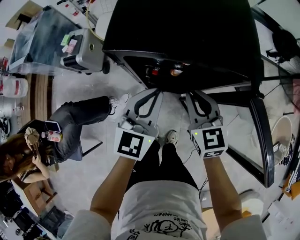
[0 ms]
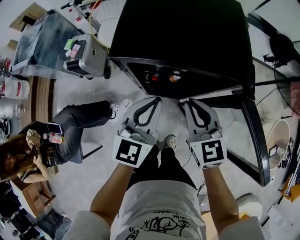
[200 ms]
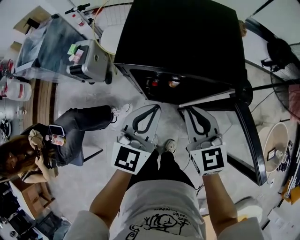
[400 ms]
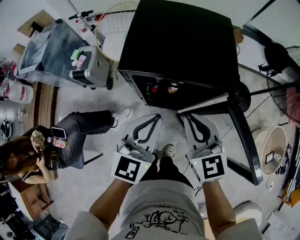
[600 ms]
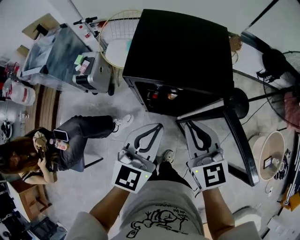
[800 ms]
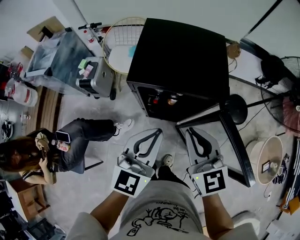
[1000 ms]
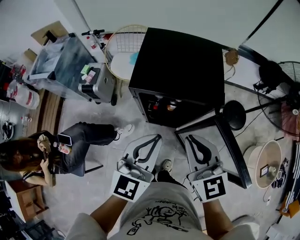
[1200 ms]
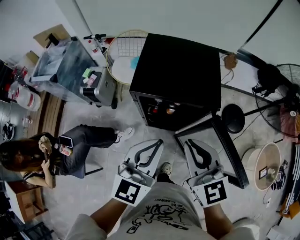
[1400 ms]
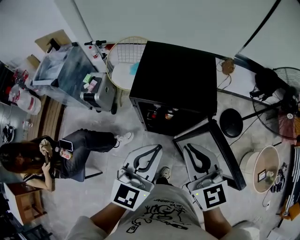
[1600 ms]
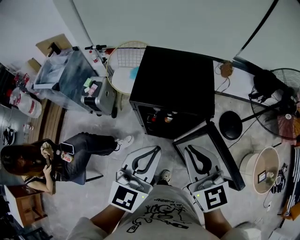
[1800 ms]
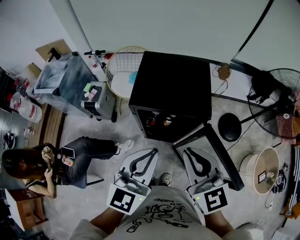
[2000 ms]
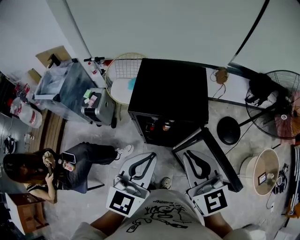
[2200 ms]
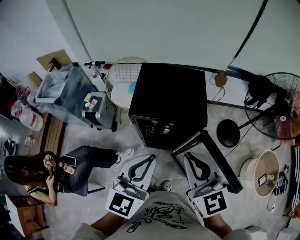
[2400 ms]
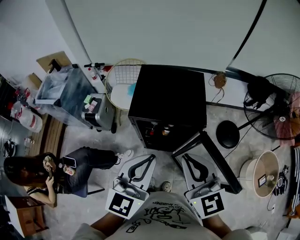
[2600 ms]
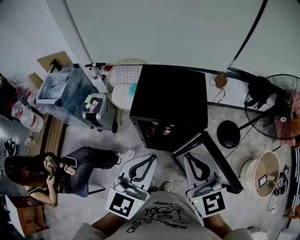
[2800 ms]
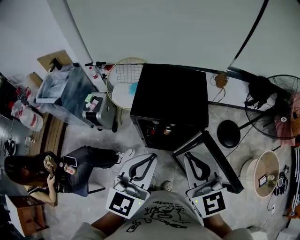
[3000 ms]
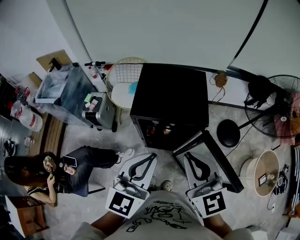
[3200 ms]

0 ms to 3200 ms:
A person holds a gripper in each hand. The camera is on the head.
0 ms to 1600 ms: Both grippers move upward and backward, roughly 25 cm.
1600 ms to 3200 ms: Both grippers move upward, about 5 cm.

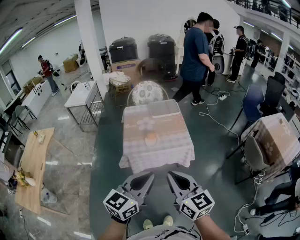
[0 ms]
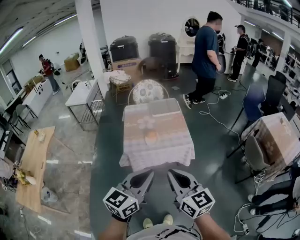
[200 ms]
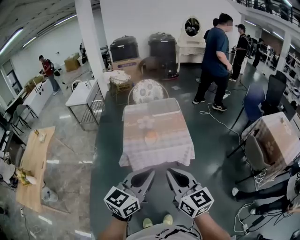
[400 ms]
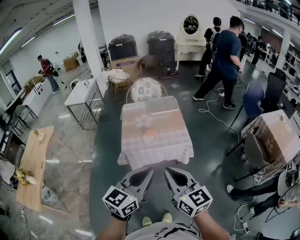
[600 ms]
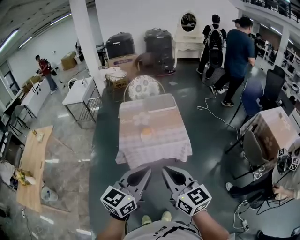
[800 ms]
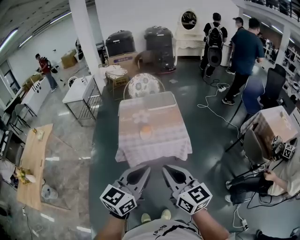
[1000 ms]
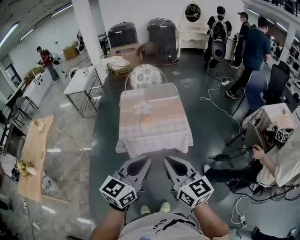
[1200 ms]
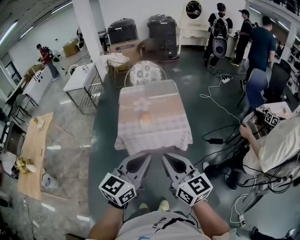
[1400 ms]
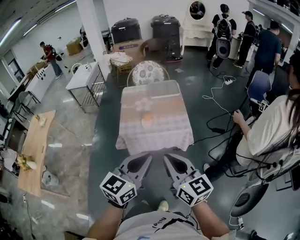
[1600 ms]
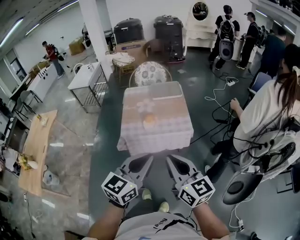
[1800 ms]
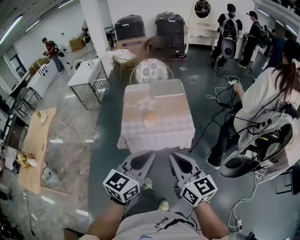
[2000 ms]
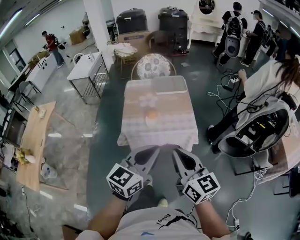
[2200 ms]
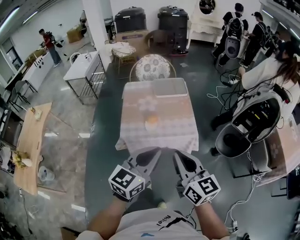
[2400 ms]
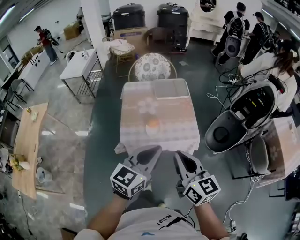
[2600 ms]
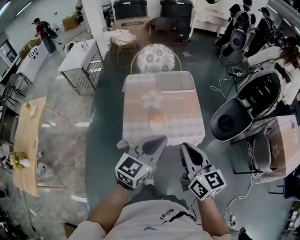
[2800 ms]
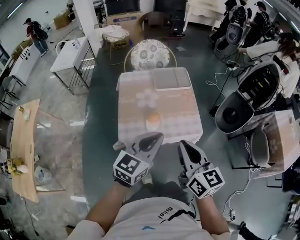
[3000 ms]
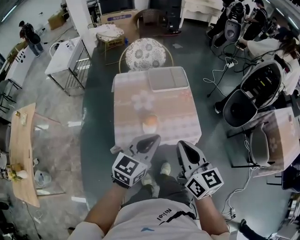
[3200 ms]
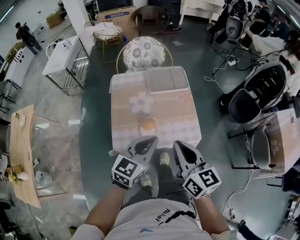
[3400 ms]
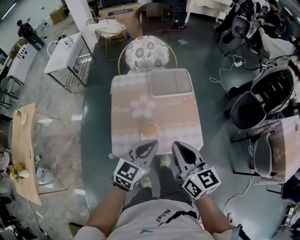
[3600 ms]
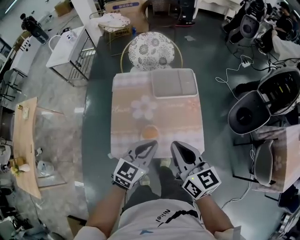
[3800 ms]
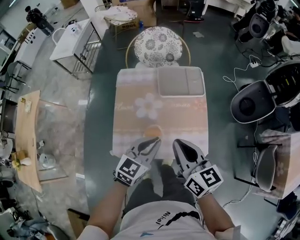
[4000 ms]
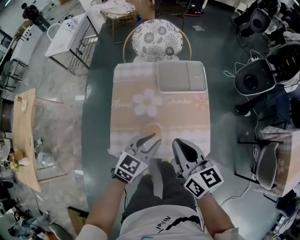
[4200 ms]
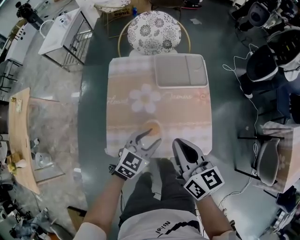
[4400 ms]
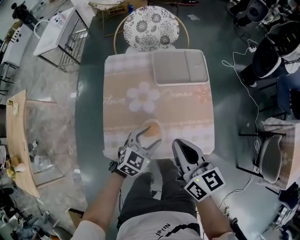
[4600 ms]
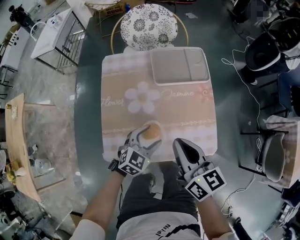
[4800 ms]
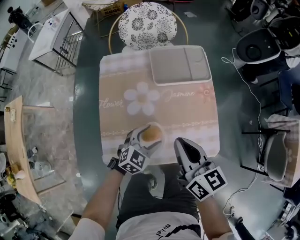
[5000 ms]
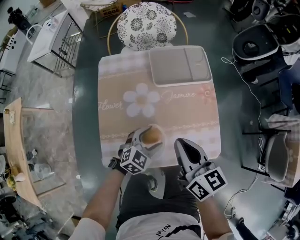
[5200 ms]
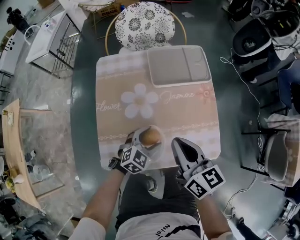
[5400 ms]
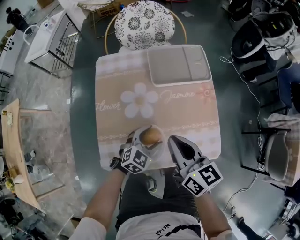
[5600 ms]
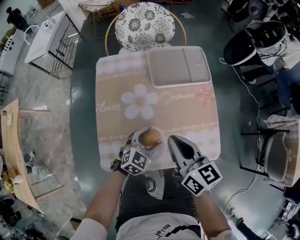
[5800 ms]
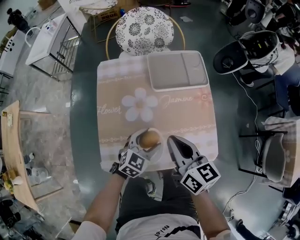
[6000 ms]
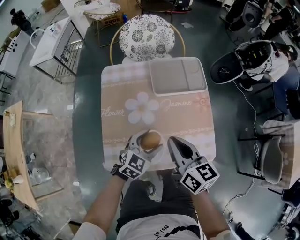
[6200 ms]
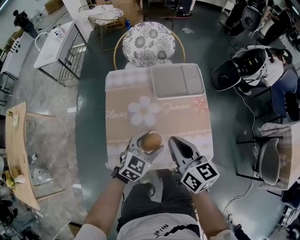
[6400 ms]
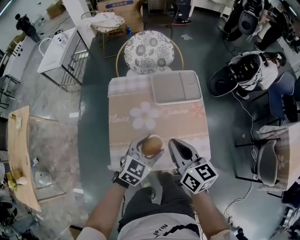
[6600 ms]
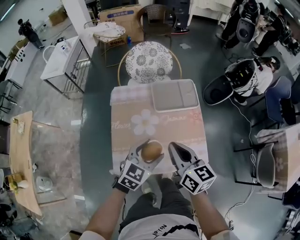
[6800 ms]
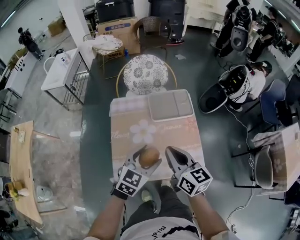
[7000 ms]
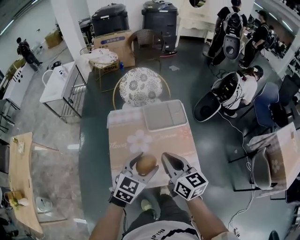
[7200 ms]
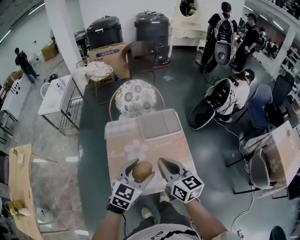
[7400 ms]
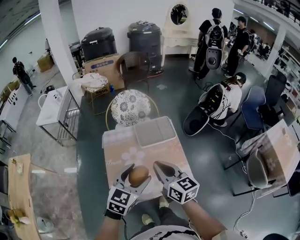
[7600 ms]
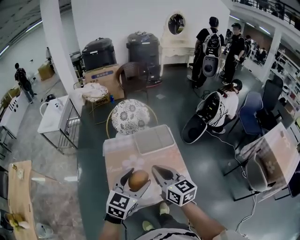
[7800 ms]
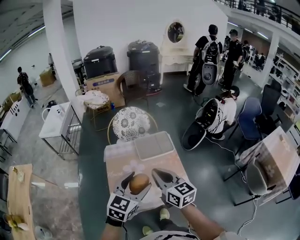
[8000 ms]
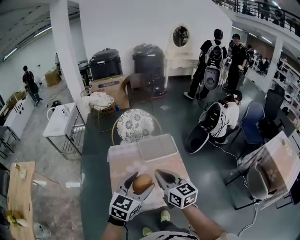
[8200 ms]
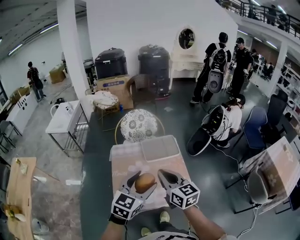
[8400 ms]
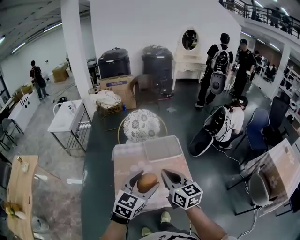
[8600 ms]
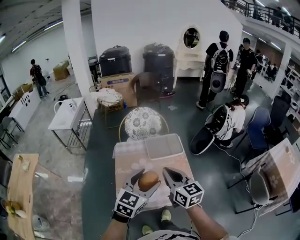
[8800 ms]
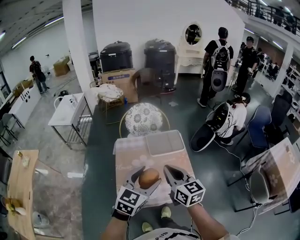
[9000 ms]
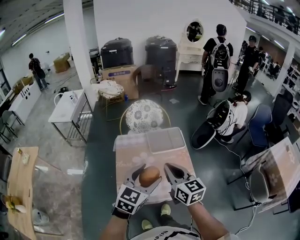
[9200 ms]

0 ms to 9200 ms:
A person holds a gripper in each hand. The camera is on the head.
0 ms to 1600 ms: The left gripper goes about 5 cm to the right.
1600 ms to 3000 ms: The two grippers go roughly 25 cm forward.
3000 ms to 4600 ms: The left gripper shifts about 35 cm downward and forward, turns by roughly 30 degrees, and opens its fingers. The right gripper is displaced forward and downward by approximately 25 cm.
4600 ms to 6200 ms: The left gripper moves some 10 cm downward and comes back. Meanwhile the right gripper moves downward, some 5 cm.
6200 ms to 7600 ms: The left gripper travels upward by some 30 cm; the right gripper goes some 20 cm upward.
7600 ms to 9200 ms: The left gripper shifts by approximately 5 cm.

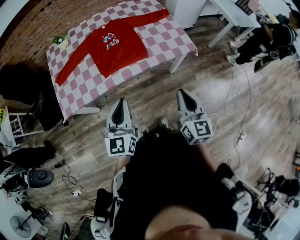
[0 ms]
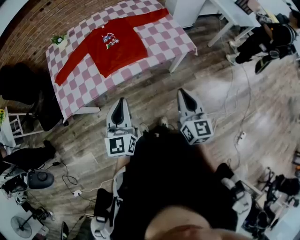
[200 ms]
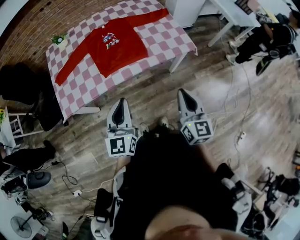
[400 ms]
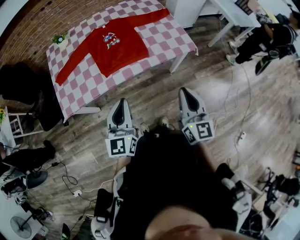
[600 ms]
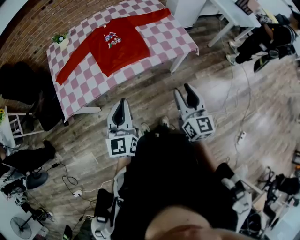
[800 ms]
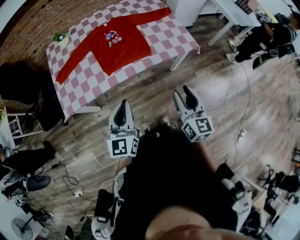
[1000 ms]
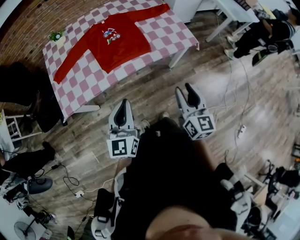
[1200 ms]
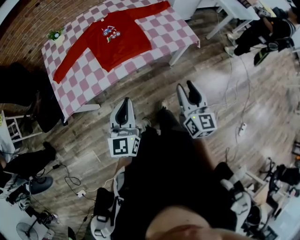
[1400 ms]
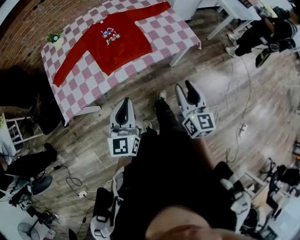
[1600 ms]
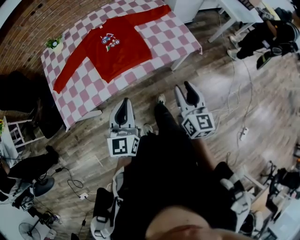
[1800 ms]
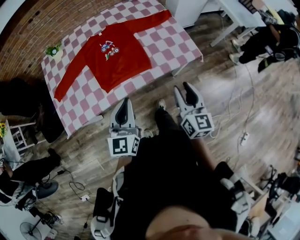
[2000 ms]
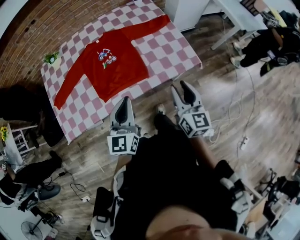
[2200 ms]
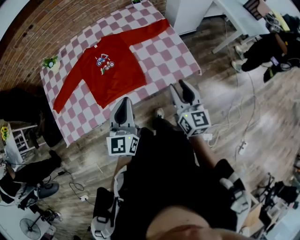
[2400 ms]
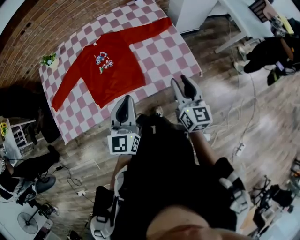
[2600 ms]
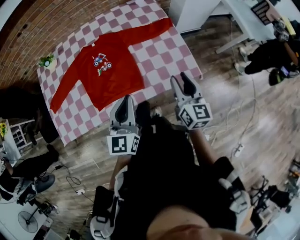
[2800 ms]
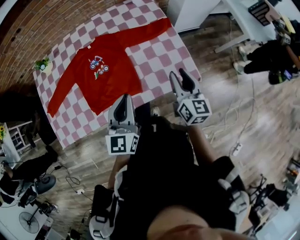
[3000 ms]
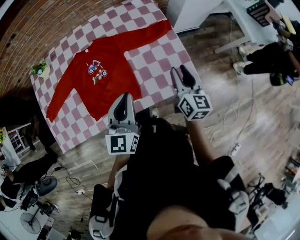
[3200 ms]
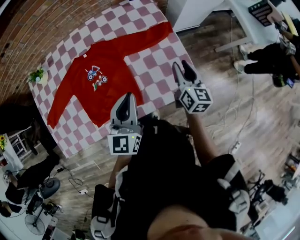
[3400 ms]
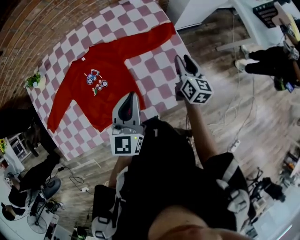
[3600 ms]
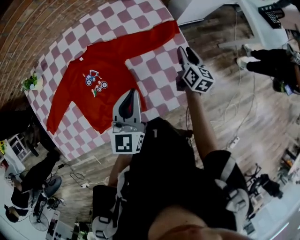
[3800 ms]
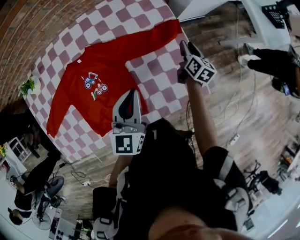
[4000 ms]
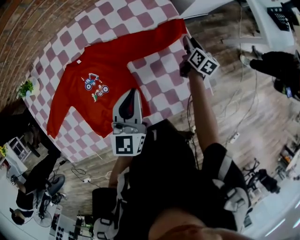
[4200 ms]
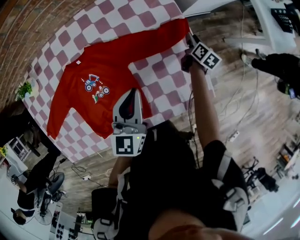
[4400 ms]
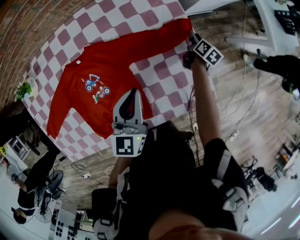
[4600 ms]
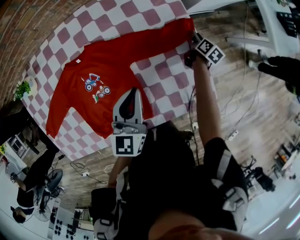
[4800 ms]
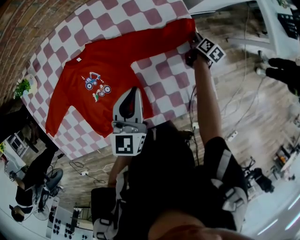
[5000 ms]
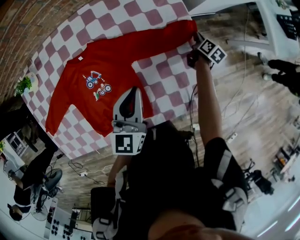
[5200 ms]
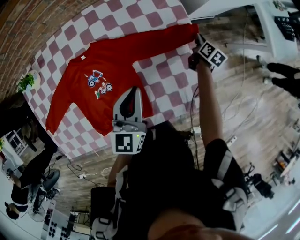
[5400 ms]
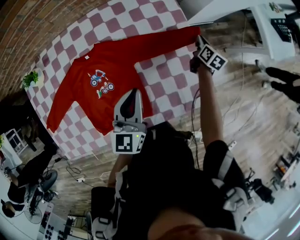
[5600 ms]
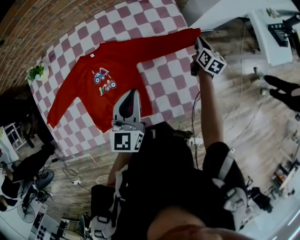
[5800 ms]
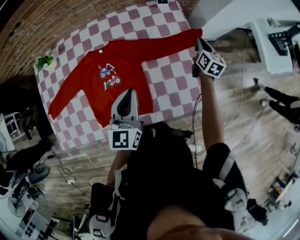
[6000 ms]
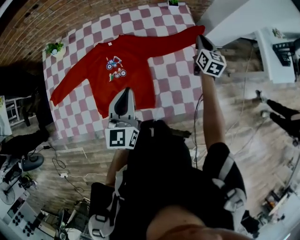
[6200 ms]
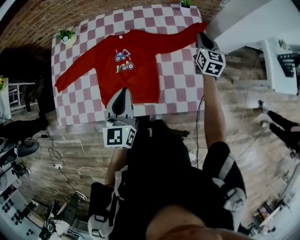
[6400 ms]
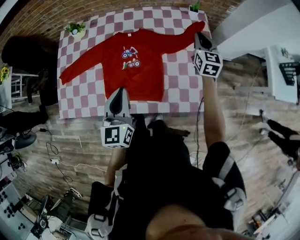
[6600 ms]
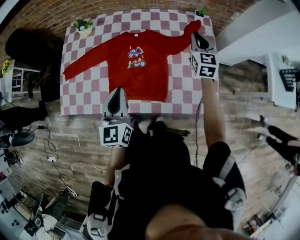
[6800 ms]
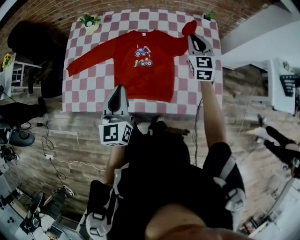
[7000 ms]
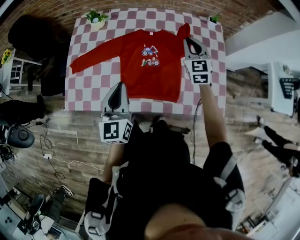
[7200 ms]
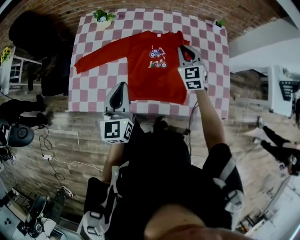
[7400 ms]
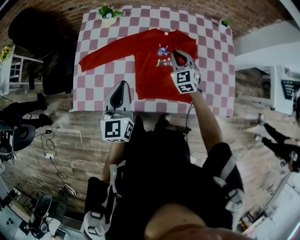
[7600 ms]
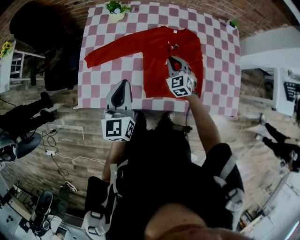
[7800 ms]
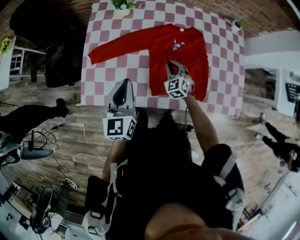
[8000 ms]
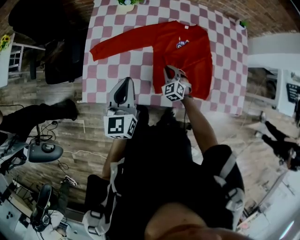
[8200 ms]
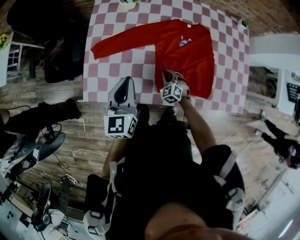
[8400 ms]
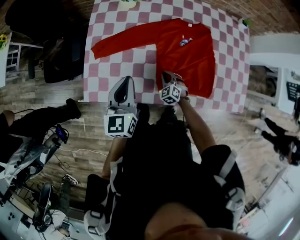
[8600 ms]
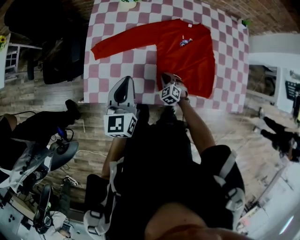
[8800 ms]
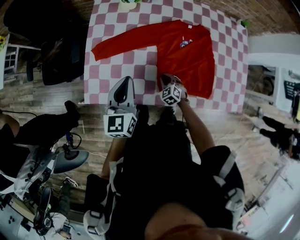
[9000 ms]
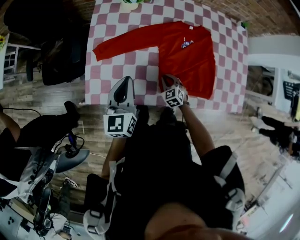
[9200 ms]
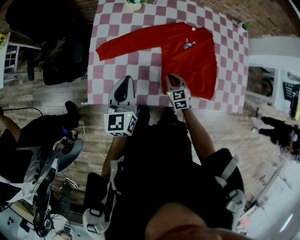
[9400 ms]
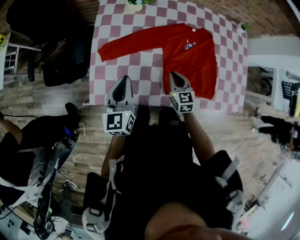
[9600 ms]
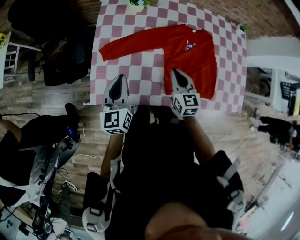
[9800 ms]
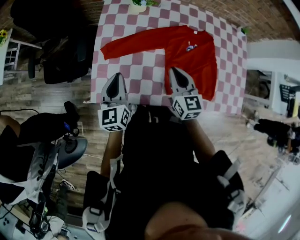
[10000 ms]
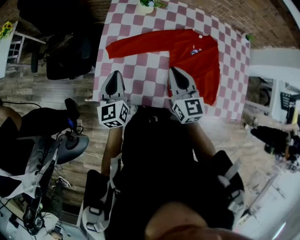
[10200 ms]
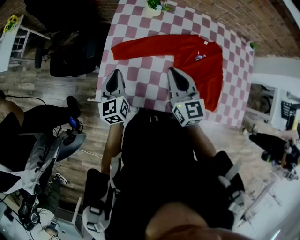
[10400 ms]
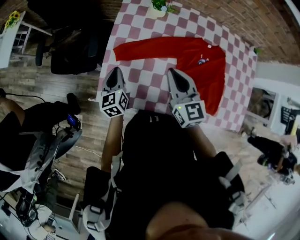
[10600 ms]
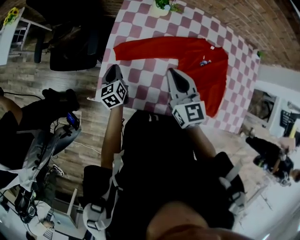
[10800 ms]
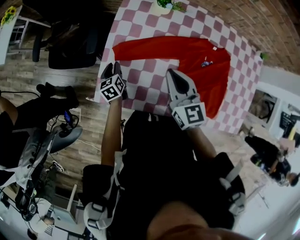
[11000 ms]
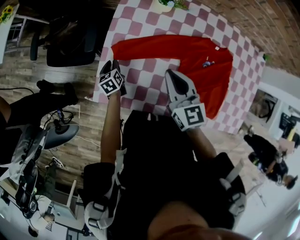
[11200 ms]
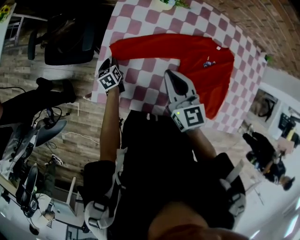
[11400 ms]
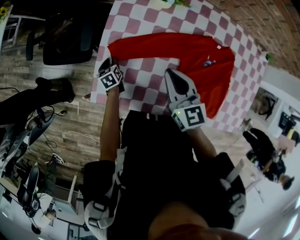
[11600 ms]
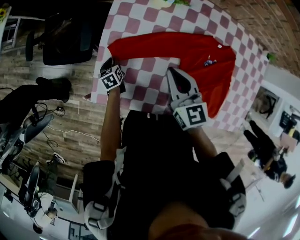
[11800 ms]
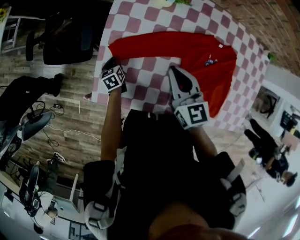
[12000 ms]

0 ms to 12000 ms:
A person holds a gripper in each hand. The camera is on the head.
0 ms to 1600 ms: The left gripper shifts by approximately 5 cm, while the right gripper changes place by some 5 cm, and opens up.
1600 ms to 3000 ms: The left gripper is displaced forward and to the right by some 35 cm. The right gripper goes some 40 cm forward.
3000 ms to 4400 ms: The left gripper goes approximately 25 cm forward, while the right gripper is displaced forward and downward by some 50 cm, and changes its angle by roughly 40 degrees.
4400 ms to 6000 ms: The right gripper goes about 15 cm upward, turns by roughly 30 degrees, and closes up, while the left gripper shifts about 10 cm backward and upward.
6000 ms to 7600 ms: Both grippers travel together to the left, about 40 cm. The right gripper rolls counterclockwise, seen from behind, by roughly 50 degrees. Meanwhile the left gripper swivels approximately 20 degrees.
7600 ms to 9000 ms: The right gripper moves downward, to the left and backward, roughly 35 cm, and turns by roughly 30 degrees. Meanwhile the left gripper moves to the left and downward, roughly 15 cm.
9000 ms to 10400 ms: The left gripper moves to the left, some 15 cm. The right gripper is displaced upward by some 35 cm, and angles its fingers upward, by some 40 degrees.
10400 ms to 12000 ms: The left gripper goes some 30 cm downward and forward, and angles its fingers downward, by about 30 degrees. The right gripper heads forward and downward, covering approximately 10 cm.
